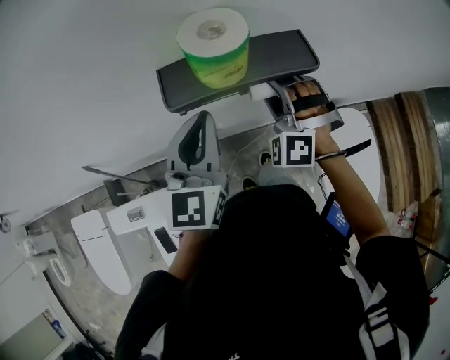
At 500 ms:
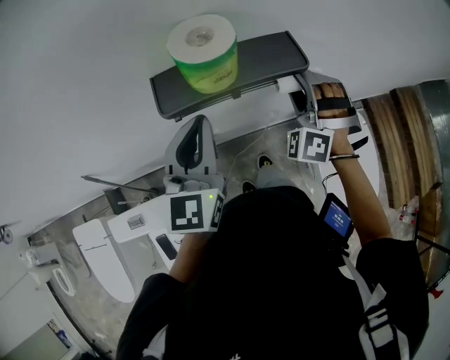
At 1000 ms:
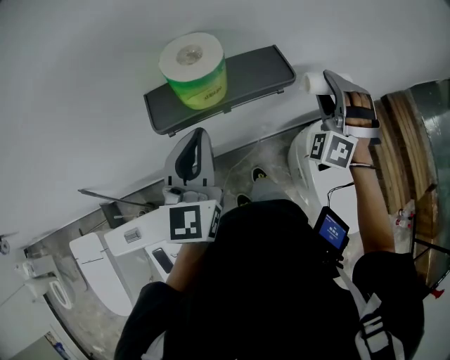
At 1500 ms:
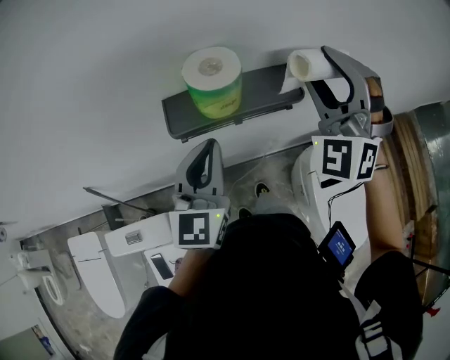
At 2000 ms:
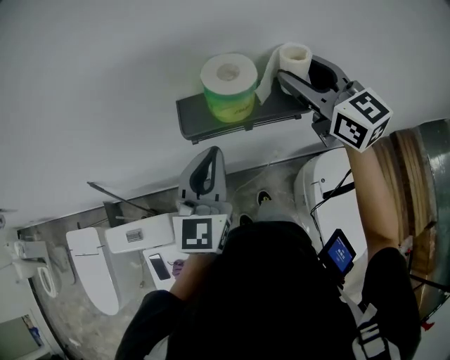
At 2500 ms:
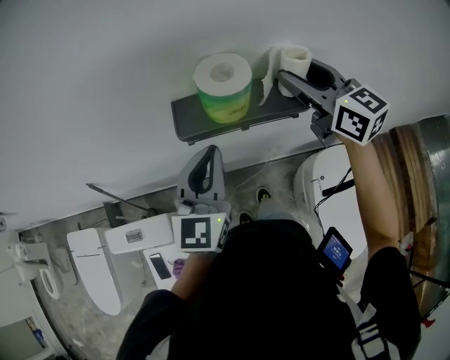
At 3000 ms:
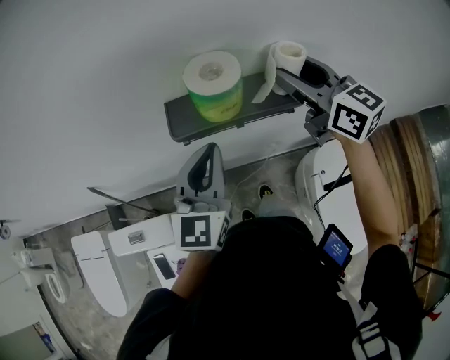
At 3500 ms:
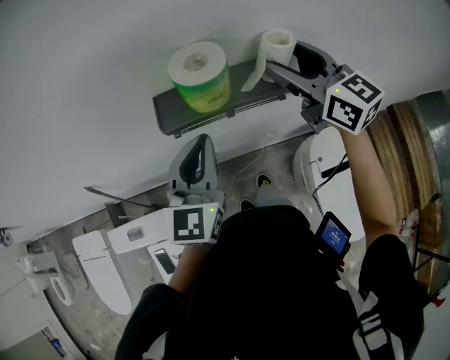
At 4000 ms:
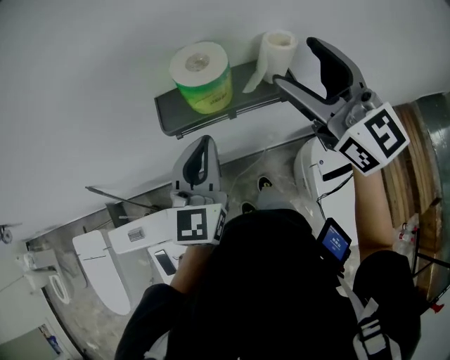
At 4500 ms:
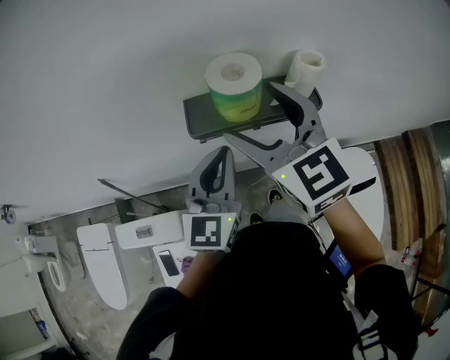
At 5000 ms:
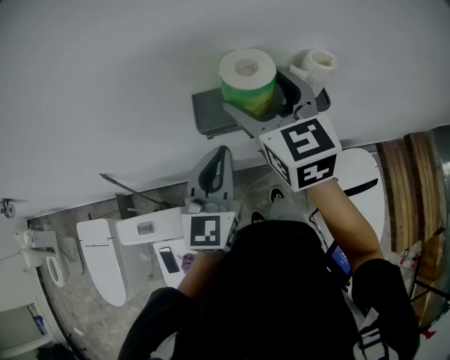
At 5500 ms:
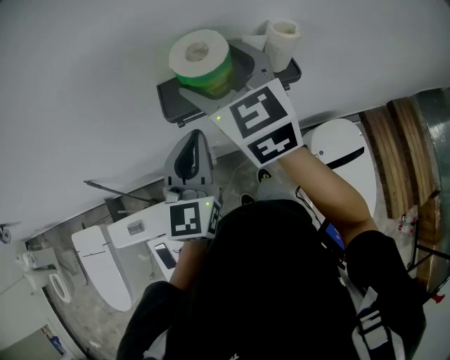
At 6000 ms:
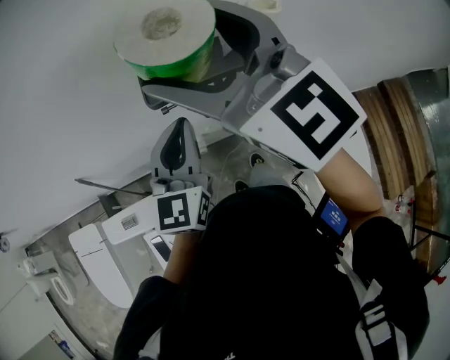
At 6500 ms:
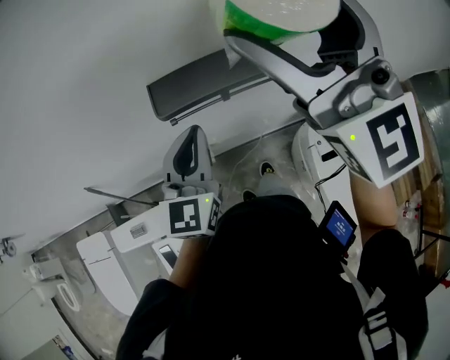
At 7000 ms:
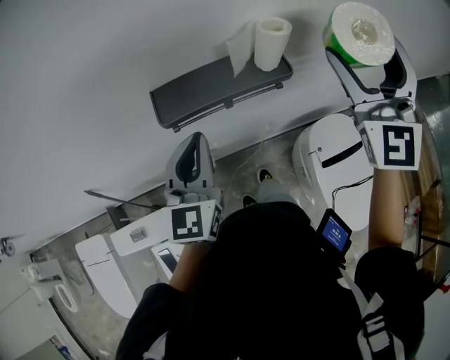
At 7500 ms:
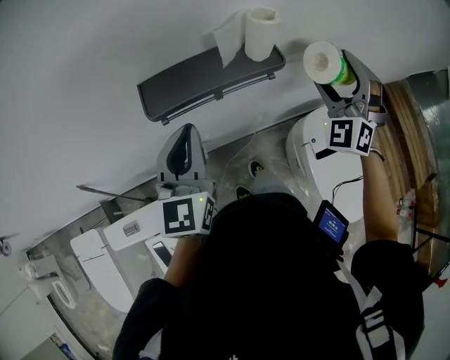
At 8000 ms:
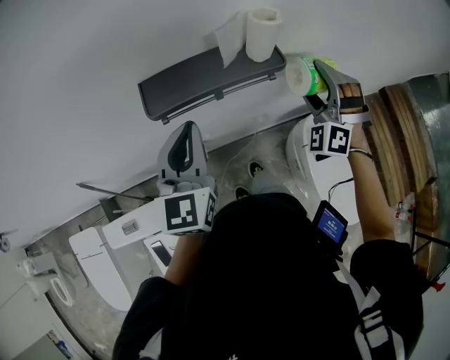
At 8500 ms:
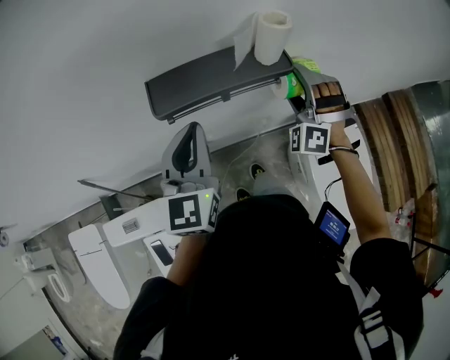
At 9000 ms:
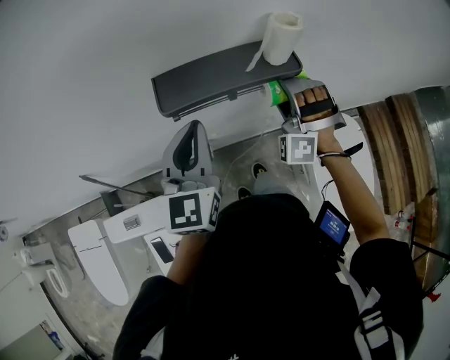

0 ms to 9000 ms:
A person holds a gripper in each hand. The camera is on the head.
0 ms to 2000 ms: The right gripper heads upward, covering roughly 20 cm, and rolls clockwise, seen from behind, by roughly 70 degrees.
2000 ms to 4500 ms: The right gripper travels to the left and backward by approximately 15 cm, and opens its fingers.
4500 ms to 7000 ms: The right gripper heads to the right, covering some 20 cm, and changes its angle by approximately 50 degrees.
7000 ms to 9000 ms: The right gripper shifts roughly 30 cm downward and to the left, and rolls counterclockwise, seen from behind, by approximately 50 degrees.

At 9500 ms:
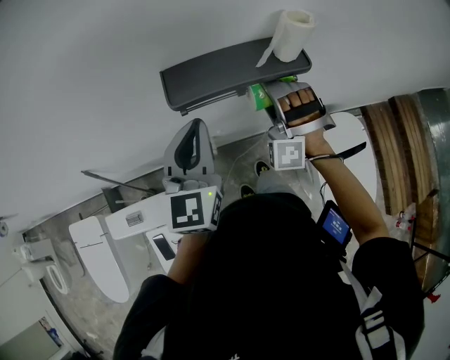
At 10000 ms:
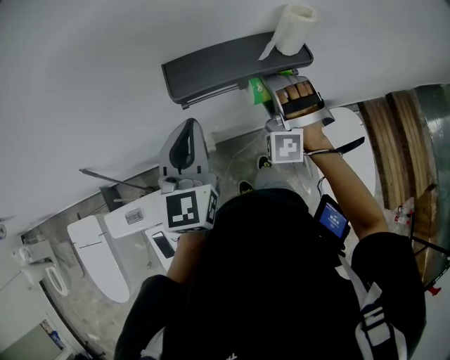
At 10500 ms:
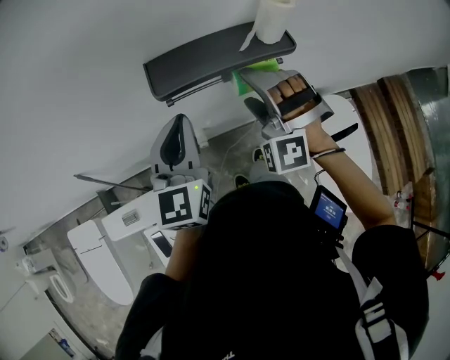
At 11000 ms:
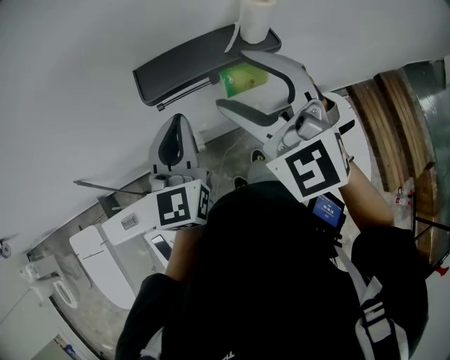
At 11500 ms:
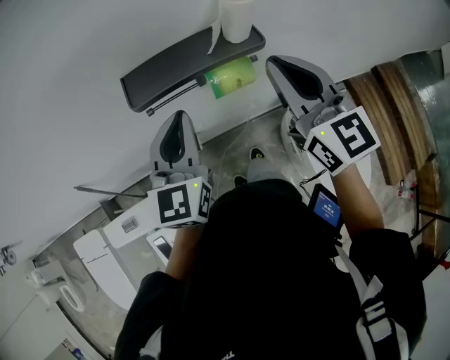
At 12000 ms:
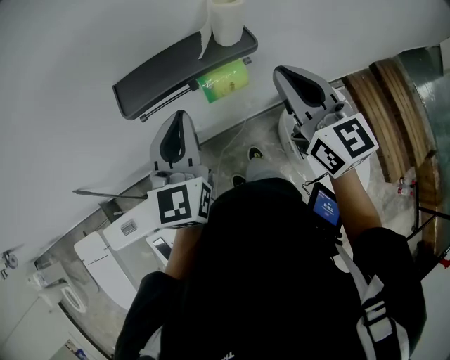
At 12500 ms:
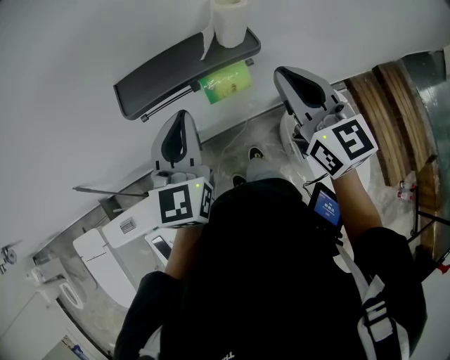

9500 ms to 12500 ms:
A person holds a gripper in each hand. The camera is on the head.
9500 ms to 11000 ms: The right gripper heads upward and backward, covering some 20 cm, and twists roughly 50 degrees clockwise, seen from behind.
11000 ms to 12500 ms: The left gripper goes some 5 cm to the right, while the right gripper is displaced to the right and downward by about 15 cm, rolls clockwise, seen from behind, by roughly 40 degrees, and closes up.

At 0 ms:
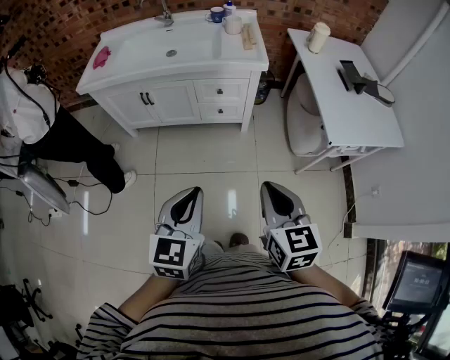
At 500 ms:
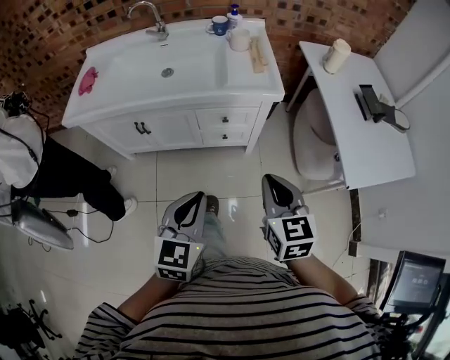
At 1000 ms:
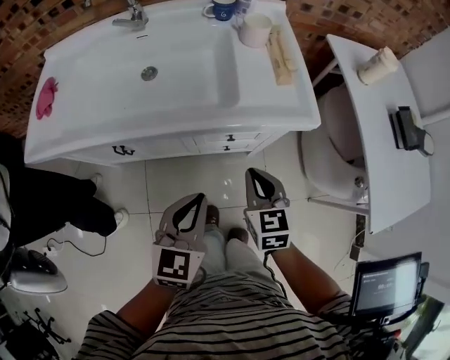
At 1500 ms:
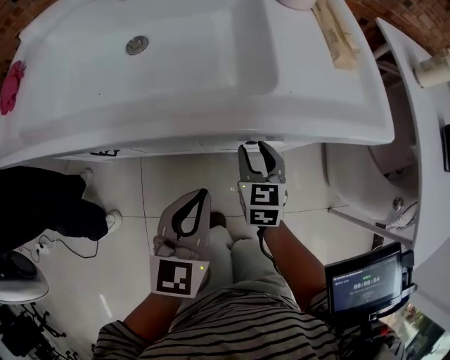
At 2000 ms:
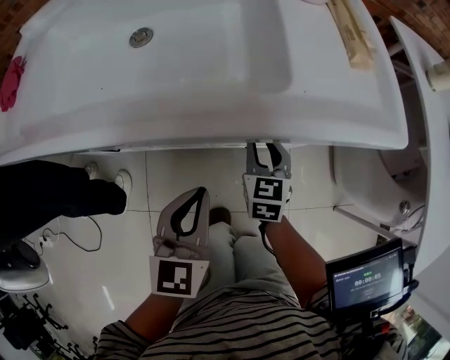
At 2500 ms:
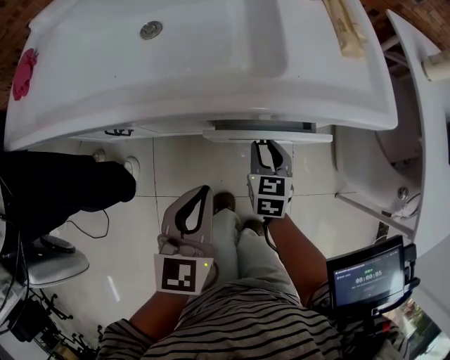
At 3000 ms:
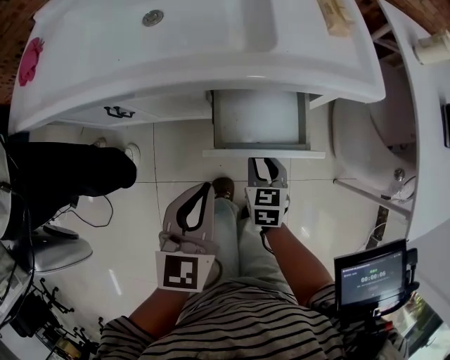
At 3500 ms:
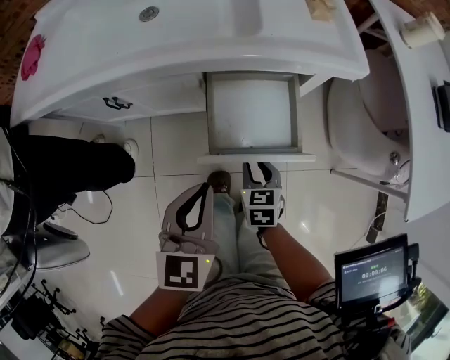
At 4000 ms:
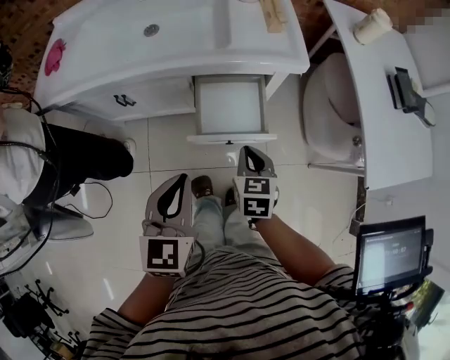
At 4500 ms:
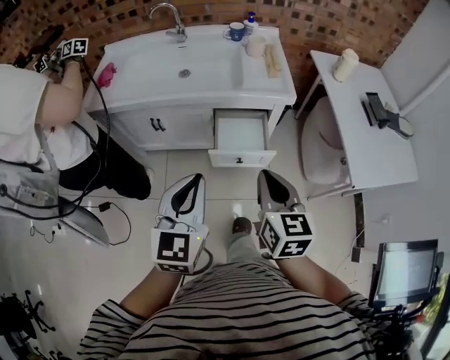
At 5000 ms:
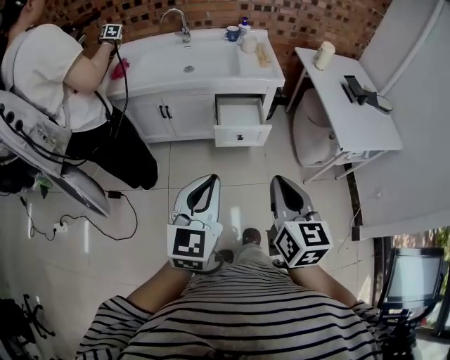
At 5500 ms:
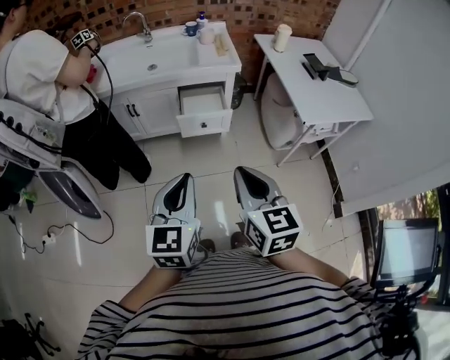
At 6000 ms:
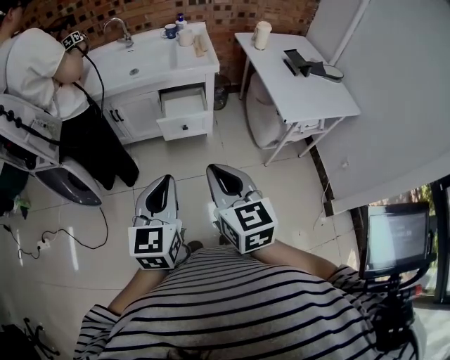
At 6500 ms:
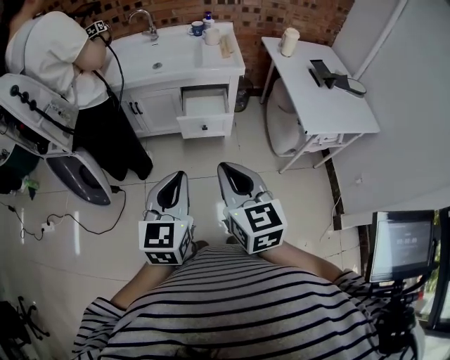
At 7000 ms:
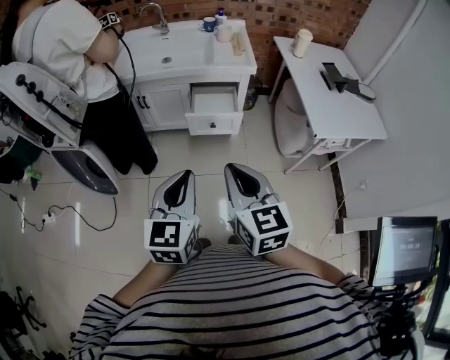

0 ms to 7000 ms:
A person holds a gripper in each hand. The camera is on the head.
0 ms to 2000 ms: The two grippers travel together, forward, roughly 50 cm. Both grippers move downward, approximately 35 cm. The right gripper opens.
2000 ms to 3500 ms: The left gripper goes about 15 cm backward and upward, while the right gripper travels backward by approximately 20 cm.
3500 ms to 5000 ms: The right gripper goes roughly 60 cm upward and backward, angles its fingers upward, by approximately 30 degrees, and closes its fingers; the left gripper is displaced backward and upward by about 40 cm.
5000 ms to 7000 ms: The left gripper is displaced to the right by some 5 cm.

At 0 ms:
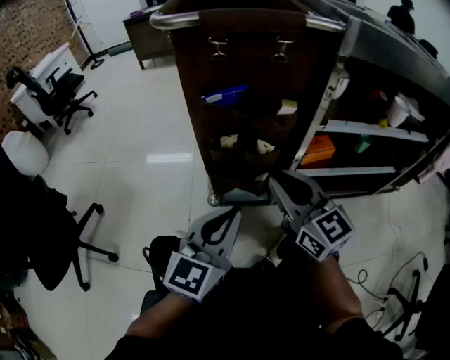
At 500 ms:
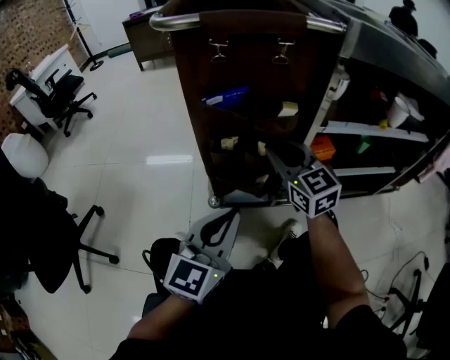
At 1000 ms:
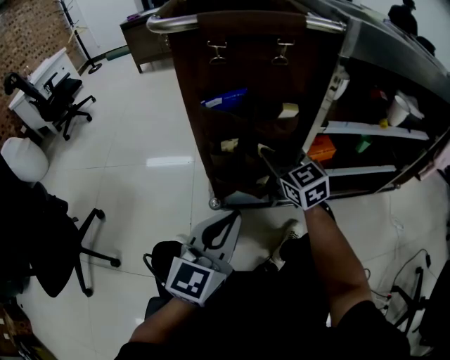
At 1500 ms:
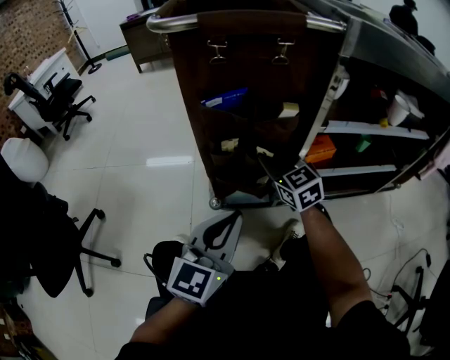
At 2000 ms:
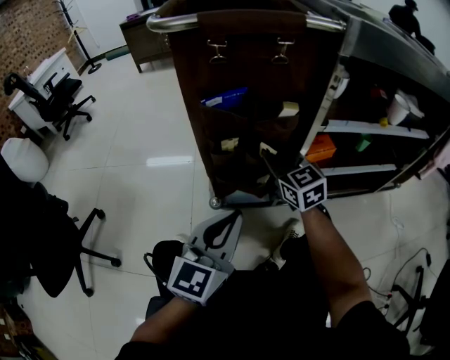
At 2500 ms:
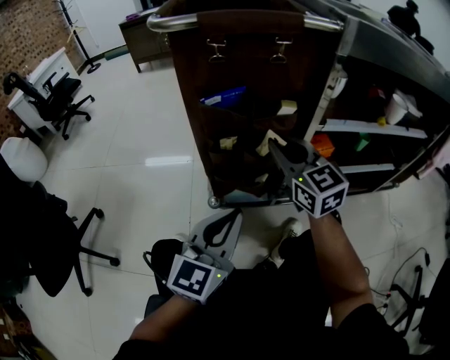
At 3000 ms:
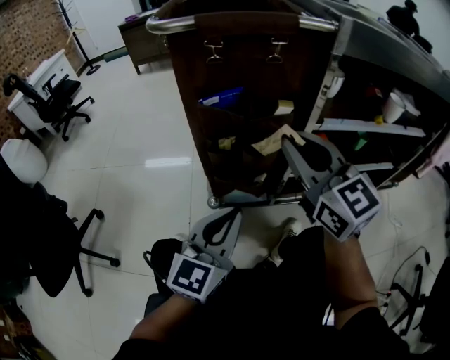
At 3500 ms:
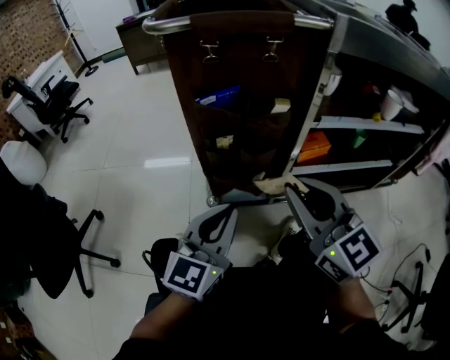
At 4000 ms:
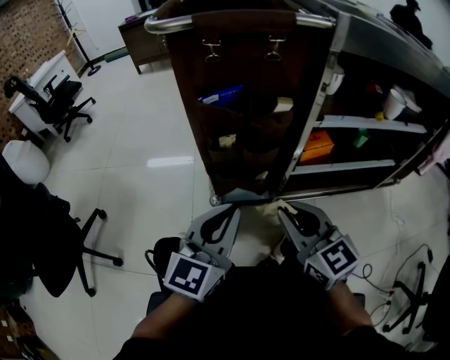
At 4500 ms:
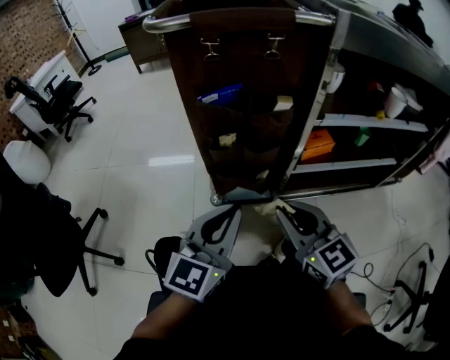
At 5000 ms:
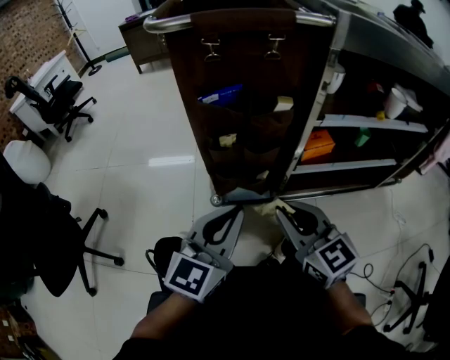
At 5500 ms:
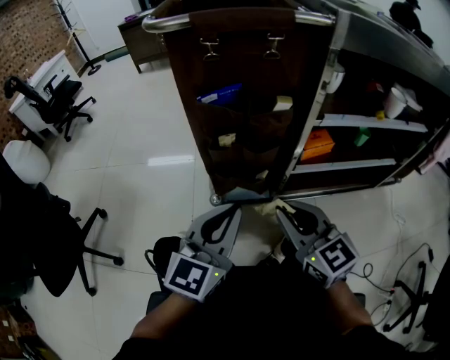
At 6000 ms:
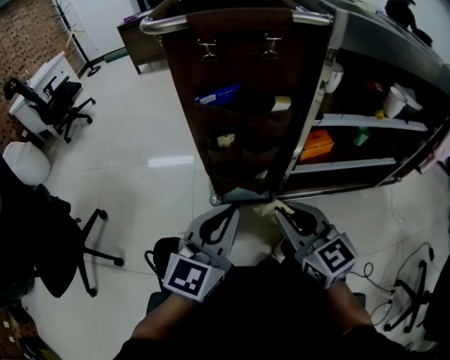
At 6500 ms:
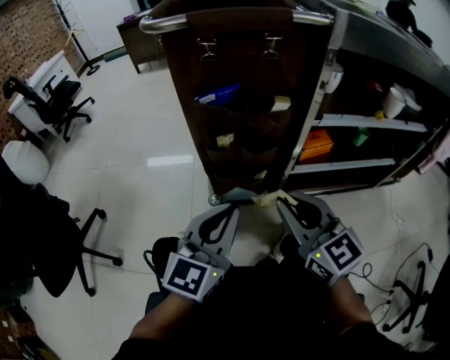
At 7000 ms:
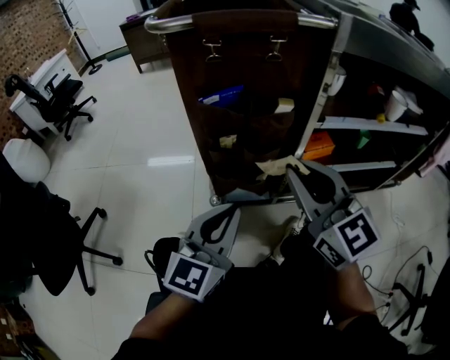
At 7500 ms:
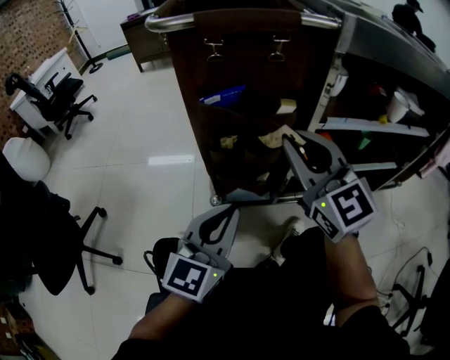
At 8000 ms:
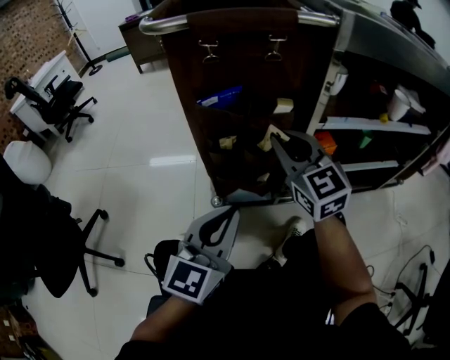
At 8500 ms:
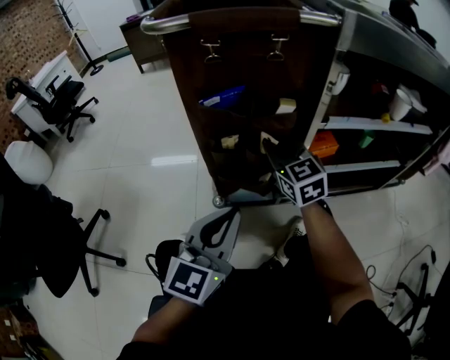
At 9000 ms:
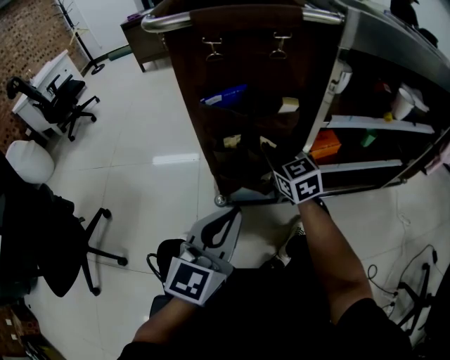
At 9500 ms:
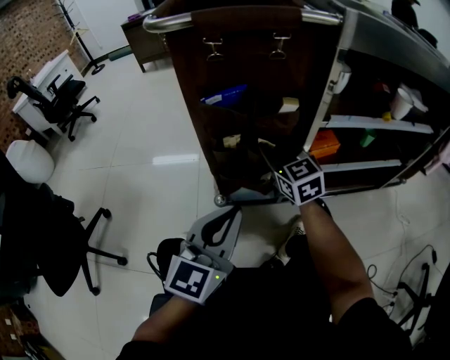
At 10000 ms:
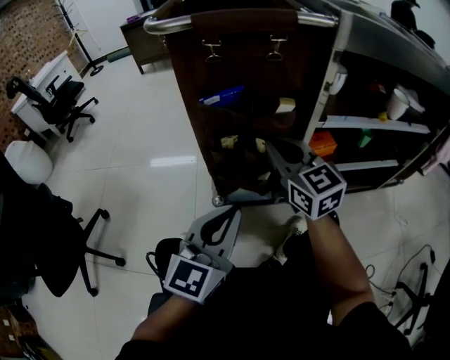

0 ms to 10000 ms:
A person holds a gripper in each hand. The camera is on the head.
0 ms to 2000 ms: The right gripper moves forward and downward, some 15 cm.
2000 ms to 4000 ms: The right gripper shifts some 20 cm backward.
4000 ms to 6000 ms: Both grippers stay about where they are.
6000 ms to 8000 ms: The right gripper shifts about 15 cm forward.
8000 ms to 10000 ms: The right gripper goes downward and returns, roughly 10 cm each way.
